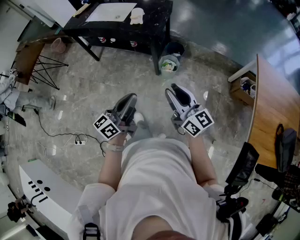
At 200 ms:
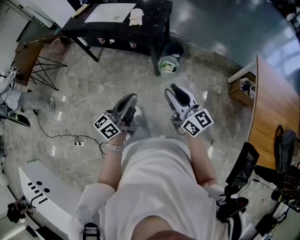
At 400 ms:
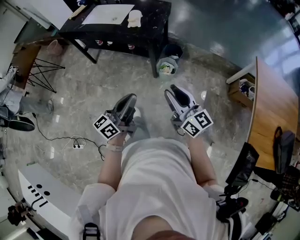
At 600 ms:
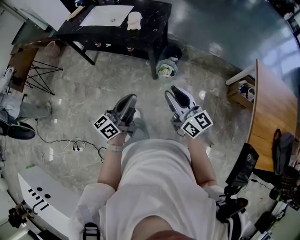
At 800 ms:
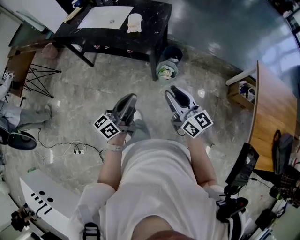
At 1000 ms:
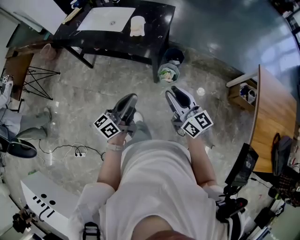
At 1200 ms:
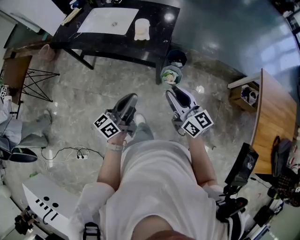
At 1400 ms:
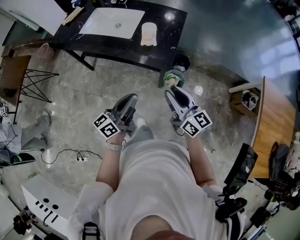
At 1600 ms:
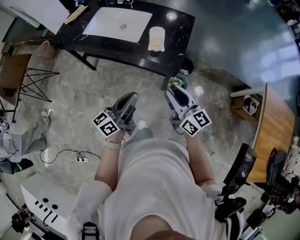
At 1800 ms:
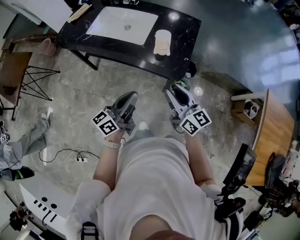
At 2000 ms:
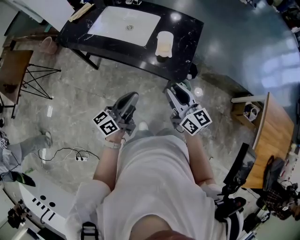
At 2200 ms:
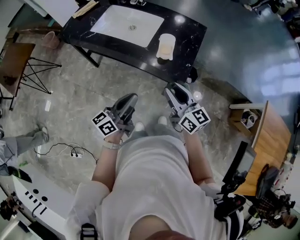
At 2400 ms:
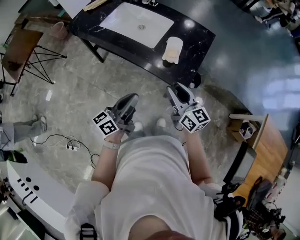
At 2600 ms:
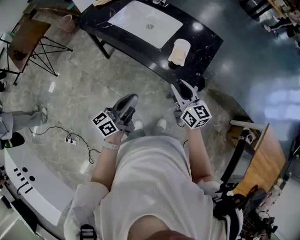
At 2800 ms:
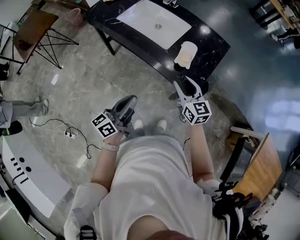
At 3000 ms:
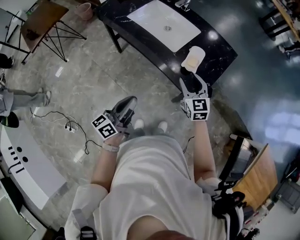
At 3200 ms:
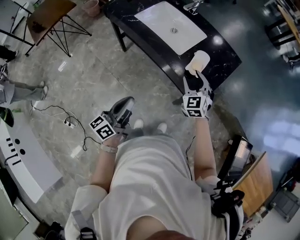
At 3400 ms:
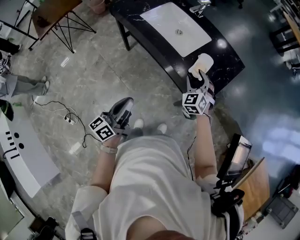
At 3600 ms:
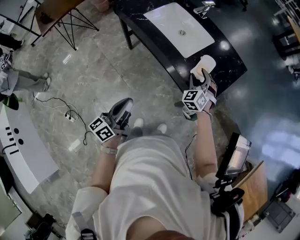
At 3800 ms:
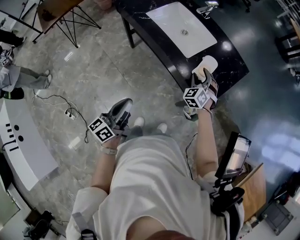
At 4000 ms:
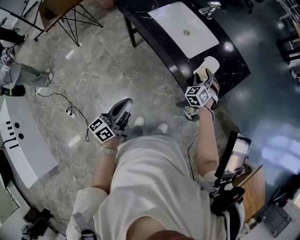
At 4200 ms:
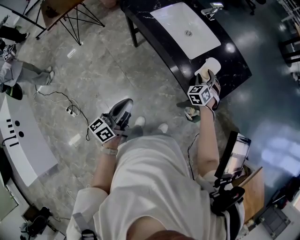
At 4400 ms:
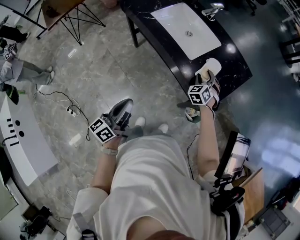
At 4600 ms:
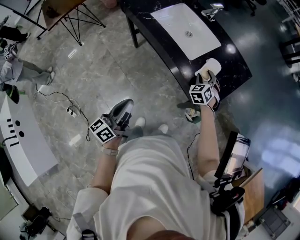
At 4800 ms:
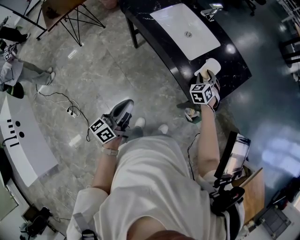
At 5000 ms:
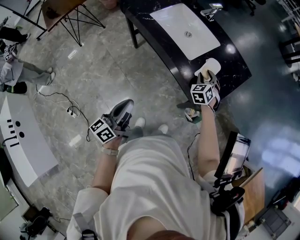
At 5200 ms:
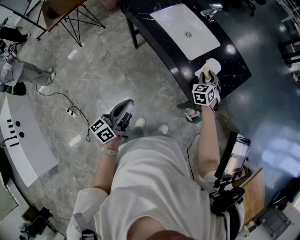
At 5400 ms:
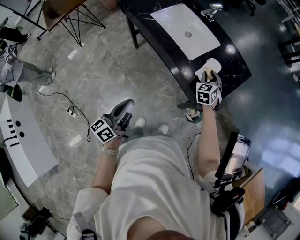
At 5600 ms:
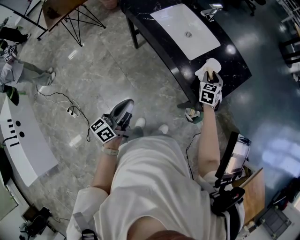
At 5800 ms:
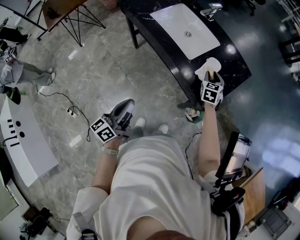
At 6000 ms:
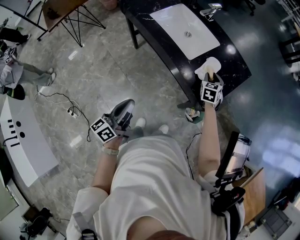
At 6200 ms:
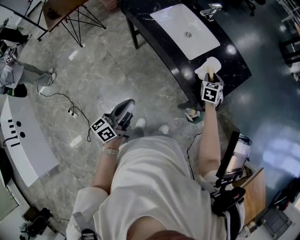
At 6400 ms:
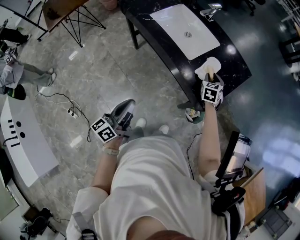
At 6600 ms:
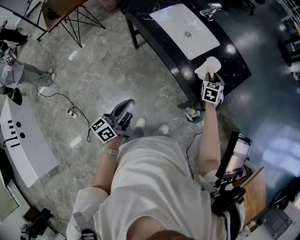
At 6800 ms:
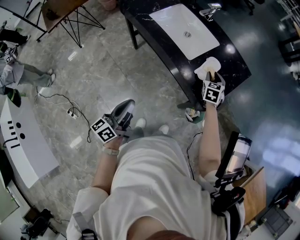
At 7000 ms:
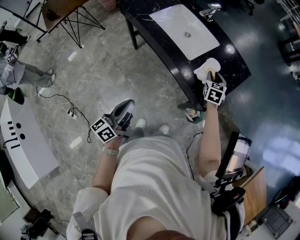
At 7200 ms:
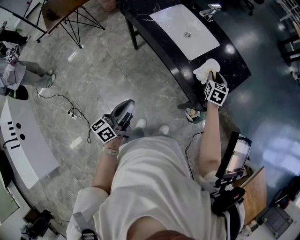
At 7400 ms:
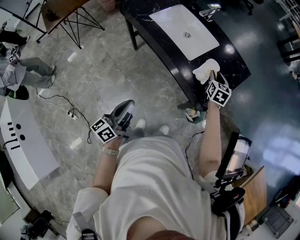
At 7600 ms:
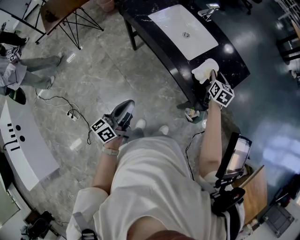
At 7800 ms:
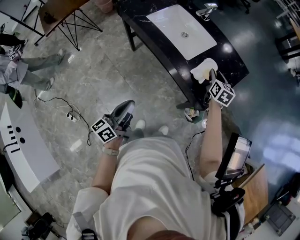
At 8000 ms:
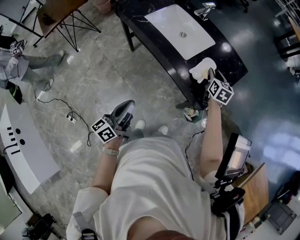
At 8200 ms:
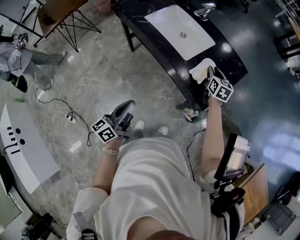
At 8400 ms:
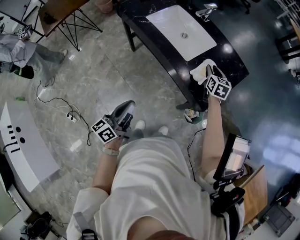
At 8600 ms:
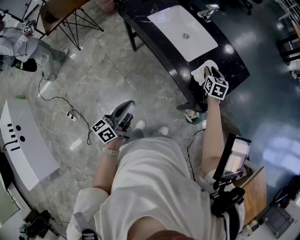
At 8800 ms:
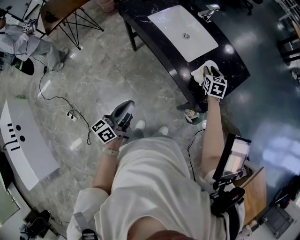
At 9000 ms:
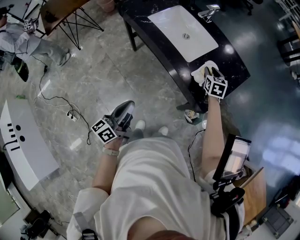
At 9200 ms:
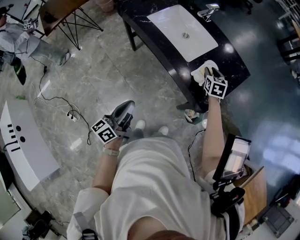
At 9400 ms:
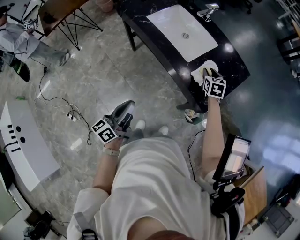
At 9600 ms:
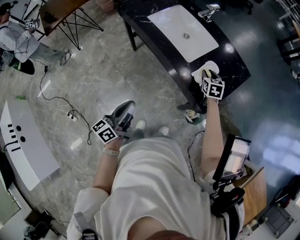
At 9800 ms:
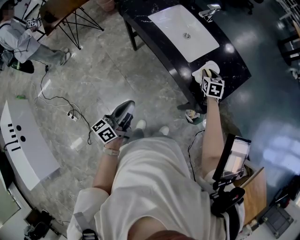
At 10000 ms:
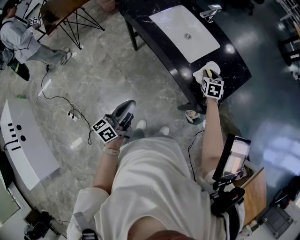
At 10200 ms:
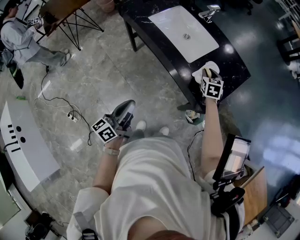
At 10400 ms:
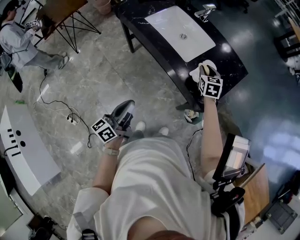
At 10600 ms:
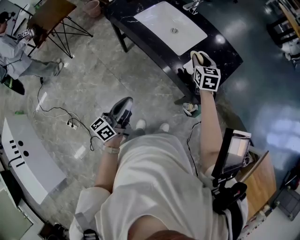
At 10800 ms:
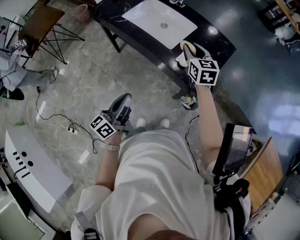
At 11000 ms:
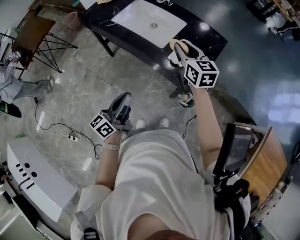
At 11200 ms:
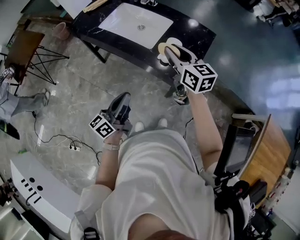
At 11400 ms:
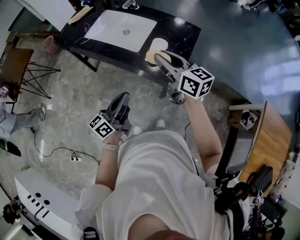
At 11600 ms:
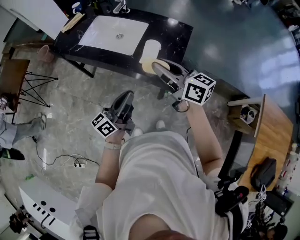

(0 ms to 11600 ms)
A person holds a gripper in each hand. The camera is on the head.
0 ms - 1400 ms: Both grippers travel together forward and to the left, approximately 35 cm.
1400 ms - 2800 ms: The left gripper heads to the left and forward, covering about 15 cm. Meanwhile the right gripper is displaced forward by about 20 cm, and turns by roughly 20 degrees.
2800 ms - 4400 ms: The left gripper goes some 5 cm to the left, while the right gripper travels forward and downward by roughly 20 cm, and twists approximately 50 degrees counterclockwise, seen from behind.
4400 ms - 5800 ms: The right gripper shifts by approximately 5 cm, and rotates some 30 degrees.
5800 ms - 7200 ms: The grippers make only small movements.
7200 ms - 10200 ms: There are only small adjustments of the grippers.
10200 ms - 11600 ms: The left gripper travels to the right by approximately 15 cm, and turns by about 30 degrees; the right gripper moves upward and backward, roughly 30 cm, and tips its fingers upward by about 40 degrees.

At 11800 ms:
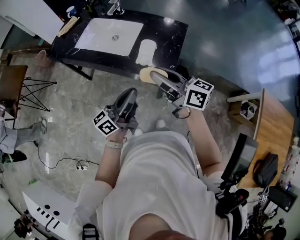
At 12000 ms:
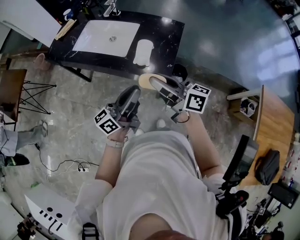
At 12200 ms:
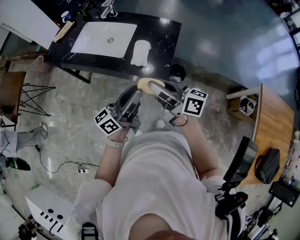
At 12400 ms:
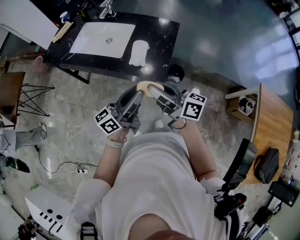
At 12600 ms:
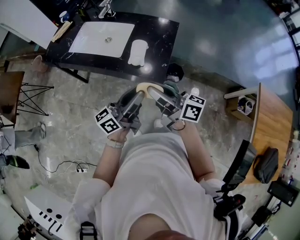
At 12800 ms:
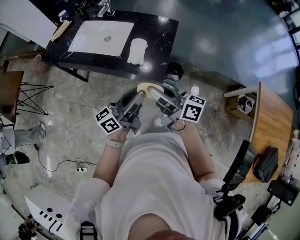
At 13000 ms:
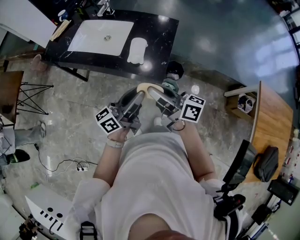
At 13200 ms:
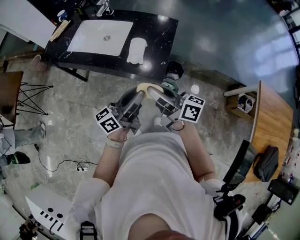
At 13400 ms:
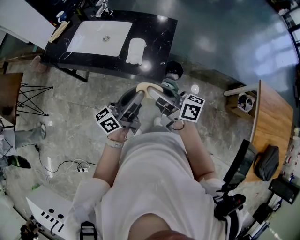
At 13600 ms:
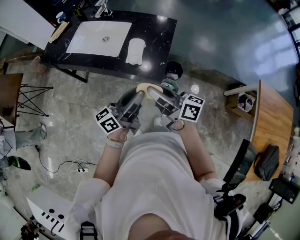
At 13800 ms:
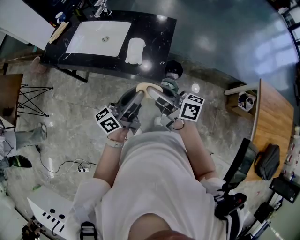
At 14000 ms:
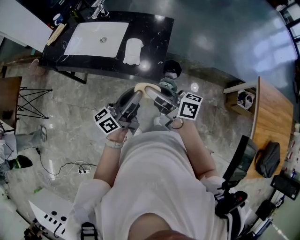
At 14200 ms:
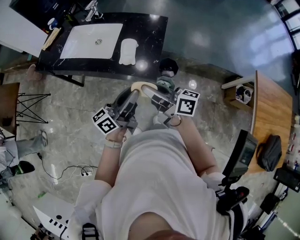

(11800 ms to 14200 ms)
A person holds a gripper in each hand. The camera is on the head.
11800 ms - 13000 ms: The right gripper heads backward, covering some 5 cm; the left gripper shifts about 5 cm to the right, and opens.
13000 ms - 14200 ms: The grippers make only small movements.

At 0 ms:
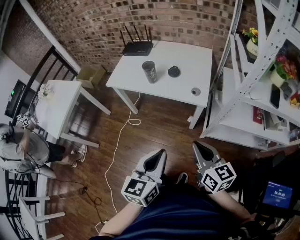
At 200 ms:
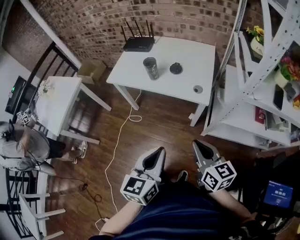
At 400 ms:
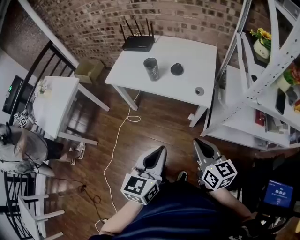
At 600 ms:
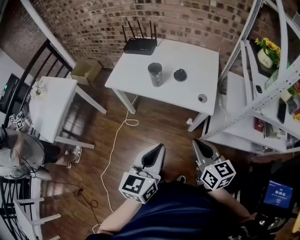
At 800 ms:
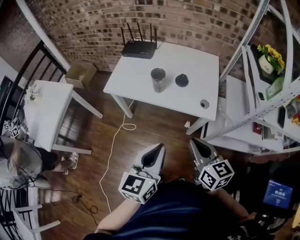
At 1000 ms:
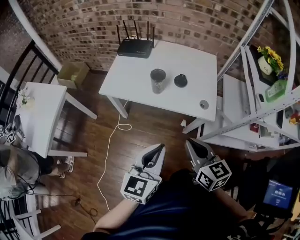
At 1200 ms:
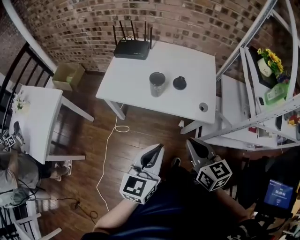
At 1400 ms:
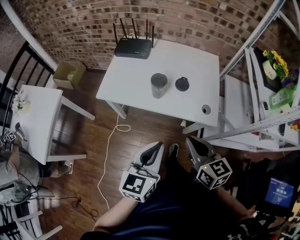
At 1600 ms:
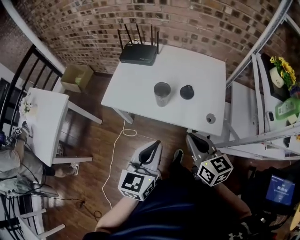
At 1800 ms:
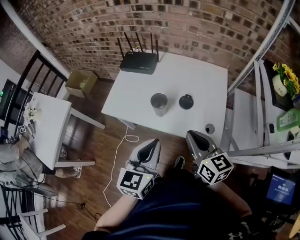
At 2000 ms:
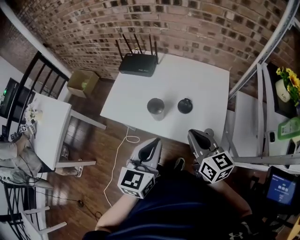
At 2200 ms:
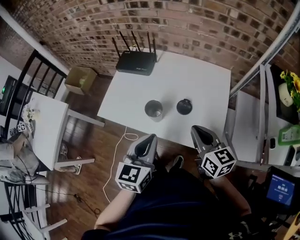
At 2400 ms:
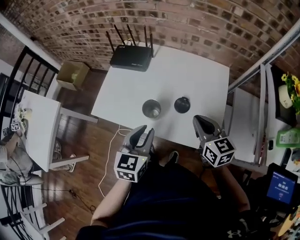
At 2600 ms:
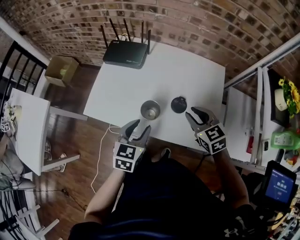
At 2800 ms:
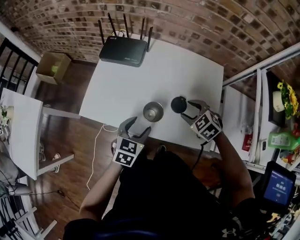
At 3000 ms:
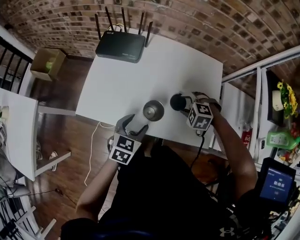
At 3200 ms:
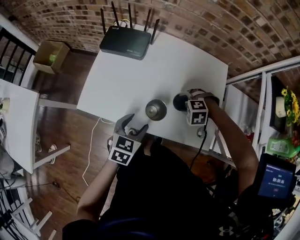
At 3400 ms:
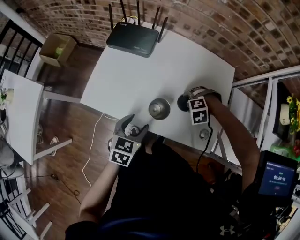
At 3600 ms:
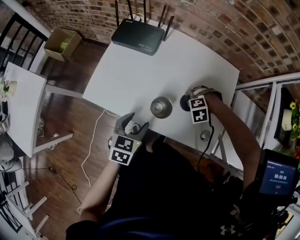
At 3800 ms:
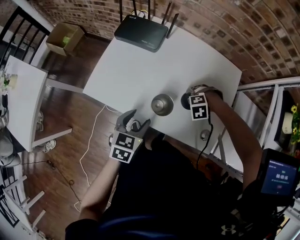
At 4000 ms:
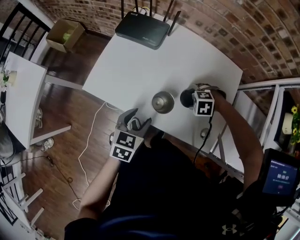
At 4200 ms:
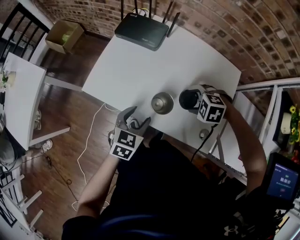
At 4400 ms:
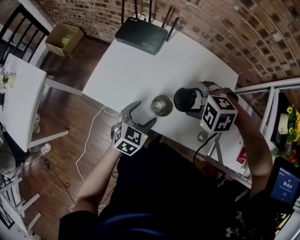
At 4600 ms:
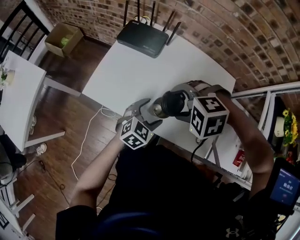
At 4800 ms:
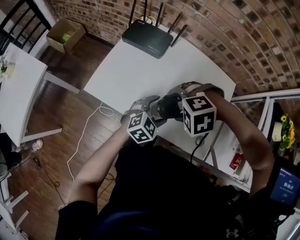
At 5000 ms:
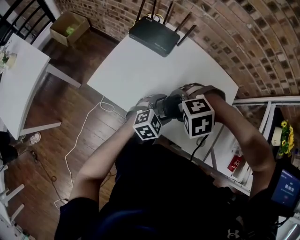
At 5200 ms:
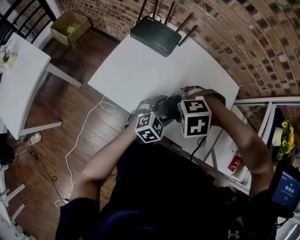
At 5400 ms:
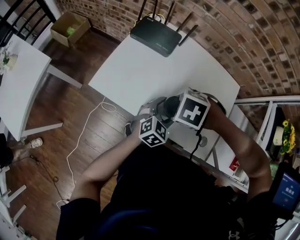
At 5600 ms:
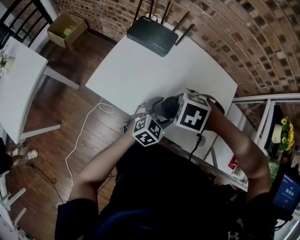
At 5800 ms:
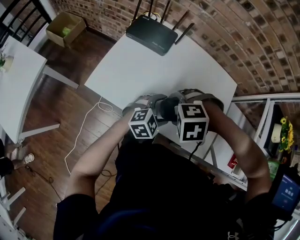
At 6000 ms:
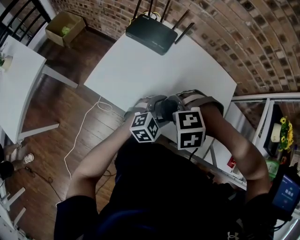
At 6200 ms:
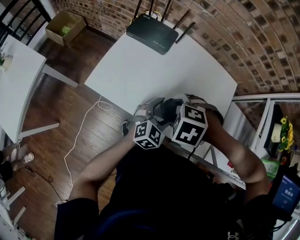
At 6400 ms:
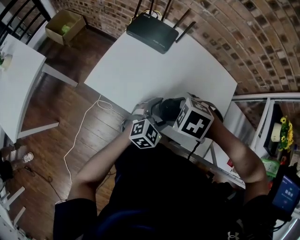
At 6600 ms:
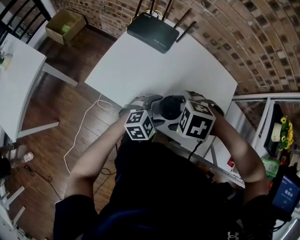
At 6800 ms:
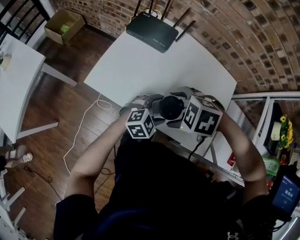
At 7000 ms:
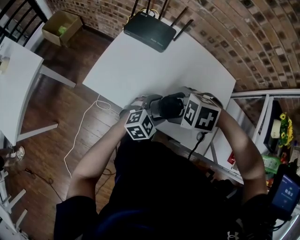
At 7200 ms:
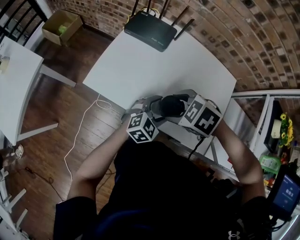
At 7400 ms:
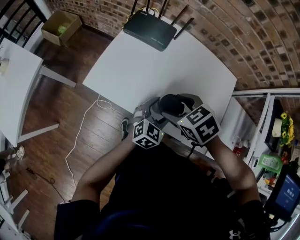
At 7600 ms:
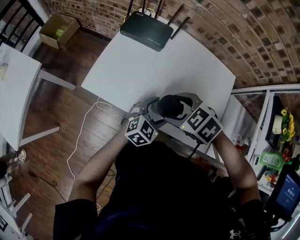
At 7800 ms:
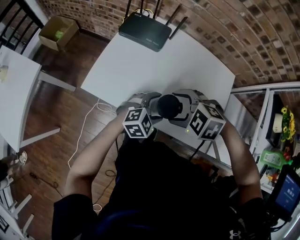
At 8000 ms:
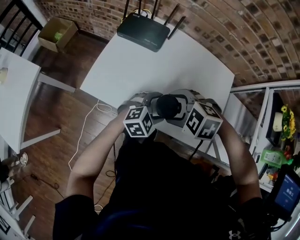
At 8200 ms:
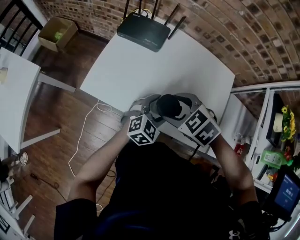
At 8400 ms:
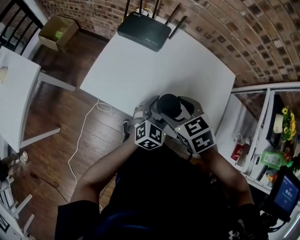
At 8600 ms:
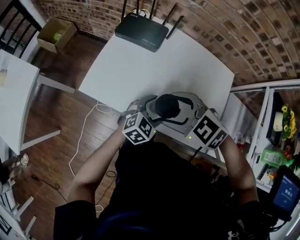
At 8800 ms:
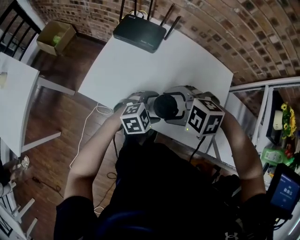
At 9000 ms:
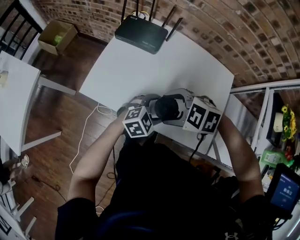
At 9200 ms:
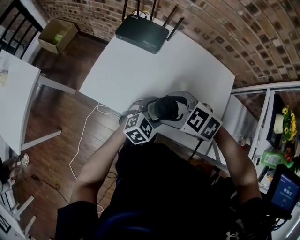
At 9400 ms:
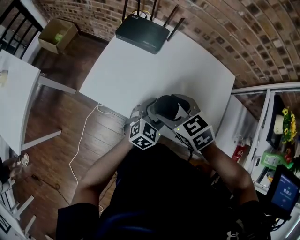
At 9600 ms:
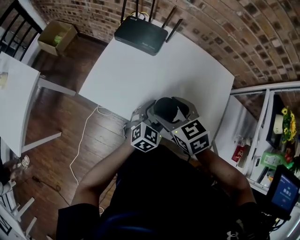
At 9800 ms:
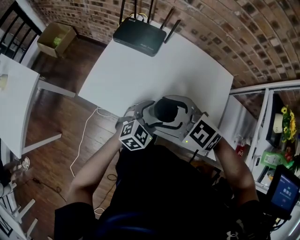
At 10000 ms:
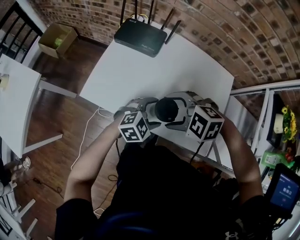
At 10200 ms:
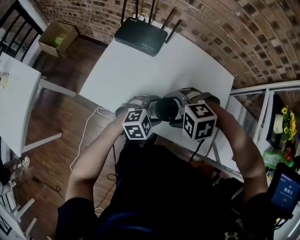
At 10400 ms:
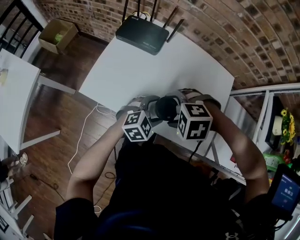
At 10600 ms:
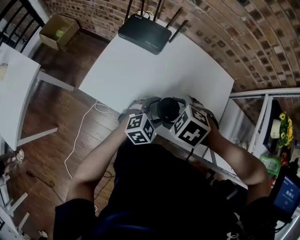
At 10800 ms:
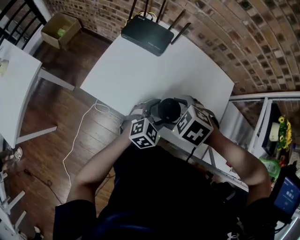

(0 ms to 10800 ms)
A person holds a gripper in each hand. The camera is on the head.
0 ms - 1600 ms: Both grippers move forward and to the left, roughly 30 cm.
1600 ms - 3000 ms: Both grippers travel together forward and downward, approximately 30 cm. The left gripper rotates about 30 degrees, and opens its fingers, while the right gripper tilts its fingers approximately 50 degrees downward, and opens up.
3000 ms - 4600 ms: The right gripper goes about 15 cm upward, and turns by roughly 30 degrees.
4600 ms - 6200 ms: The right gripper shifts some 5 cm downward, and turns by roughly 30 degrees.
6200 ms - 7800 ms: The left gripper changes its angle by approximately 20 degrees, while the right gripper turns by roughly 20 degrees.
7800 ms - 9200 ms: The right gripper turns by roughly 20 degrees.
9200 ms - 10800 ms: The right gripper changes its angle by about 20 degrees.
